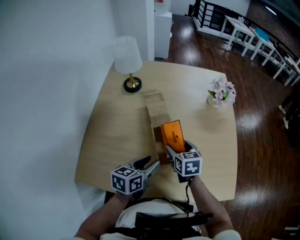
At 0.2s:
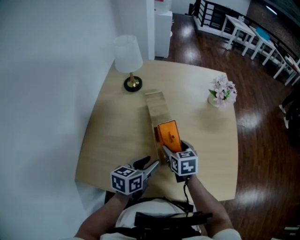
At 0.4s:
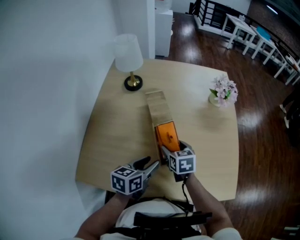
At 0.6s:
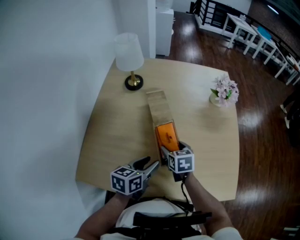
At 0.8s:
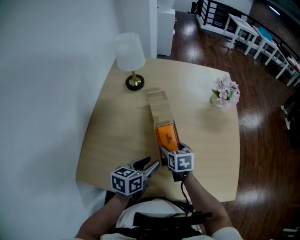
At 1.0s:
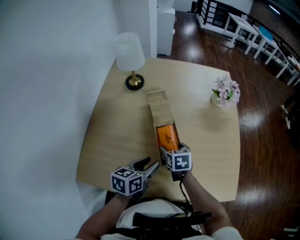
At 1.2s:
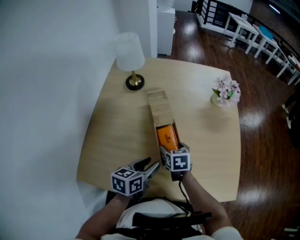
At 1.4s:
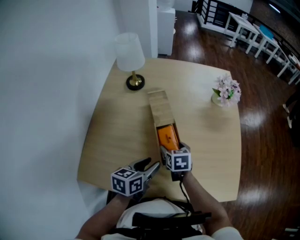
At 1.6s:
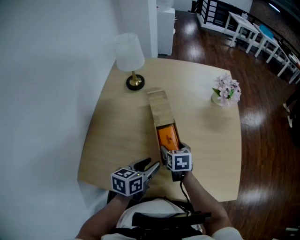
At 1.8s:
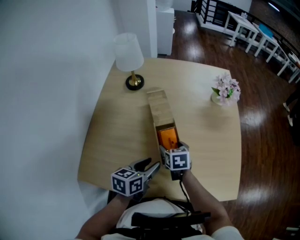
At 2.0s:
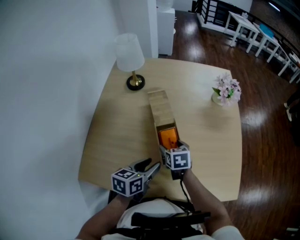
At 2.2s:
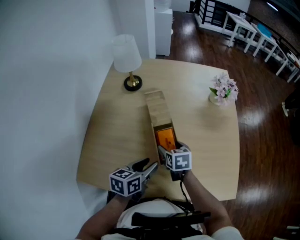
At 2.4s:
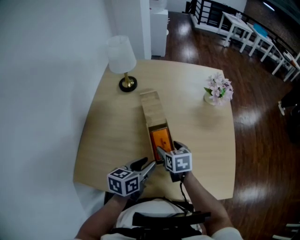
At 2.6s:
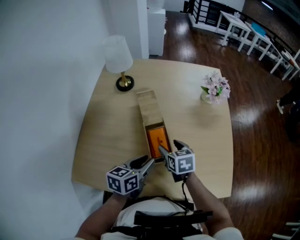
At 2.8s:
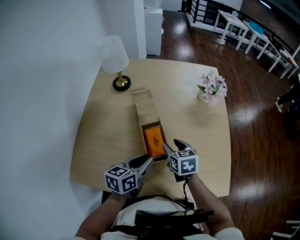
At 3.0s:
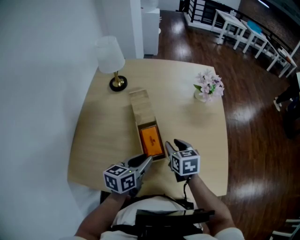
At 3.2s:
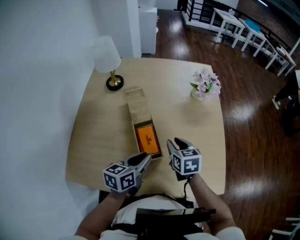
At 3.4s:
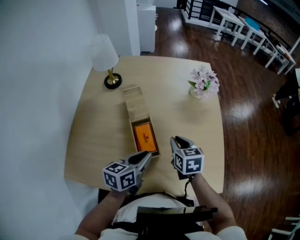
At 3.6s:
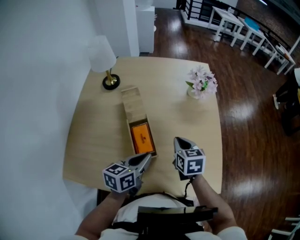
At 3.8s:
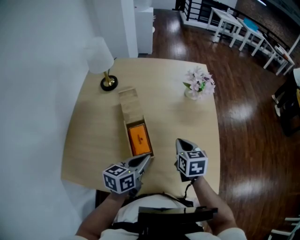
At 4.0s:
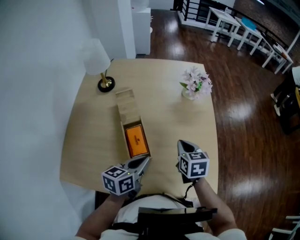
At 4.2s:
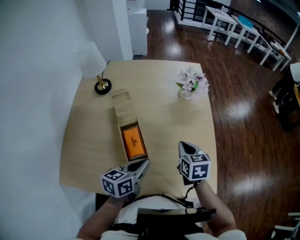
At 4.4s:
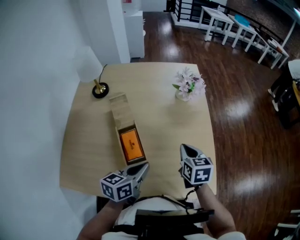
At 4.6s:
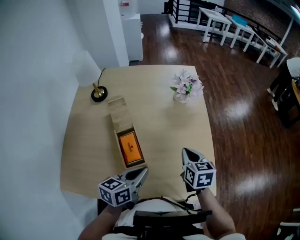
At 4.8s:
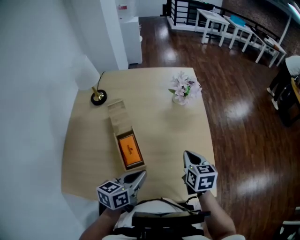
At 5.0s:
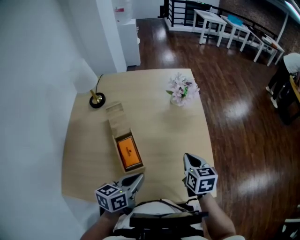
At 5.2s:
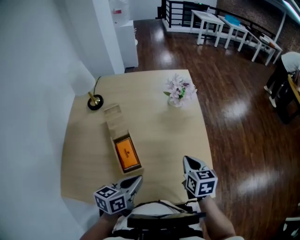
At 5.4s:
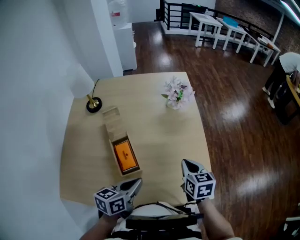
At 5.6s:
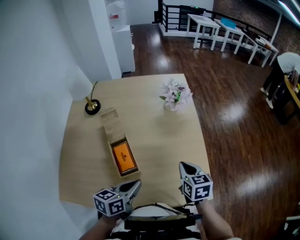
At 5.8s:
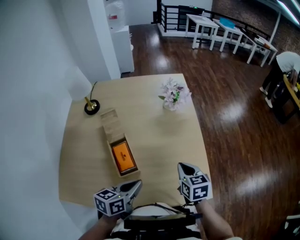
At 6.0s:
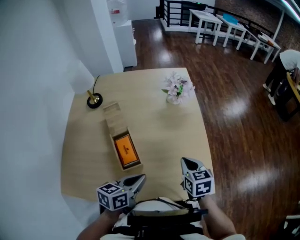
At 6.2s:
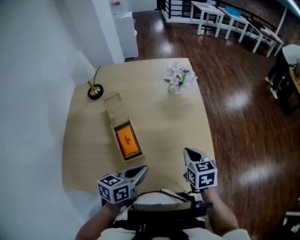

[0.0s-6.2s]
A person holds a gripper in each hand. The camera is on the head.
0.0s to 1.6s: The right gripper heads downward, covering approximately 5 cm.
1.6s to 3.2s: The right gripper goes approximately 15 cm to the right and upward, and closes its fingers; the left gripper heads to the right, covering roughly 5 cm, and closes its fingers.
3.2s to 4.6s: The left gripper goes some 10 cm to the right. Meanwhile the right gripper heads to the right, covering roughly 15 cm.
4.6s to 6.2s: The right gripper ends up about 5 cm from where it was.

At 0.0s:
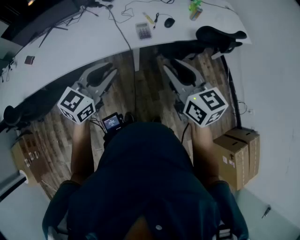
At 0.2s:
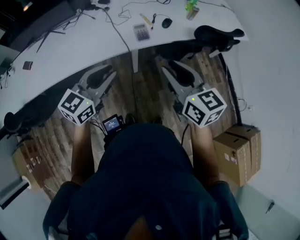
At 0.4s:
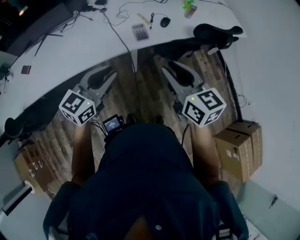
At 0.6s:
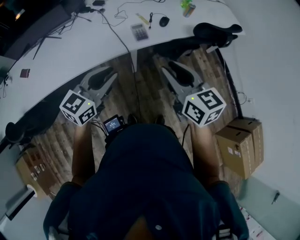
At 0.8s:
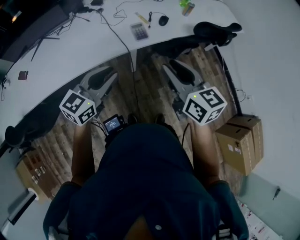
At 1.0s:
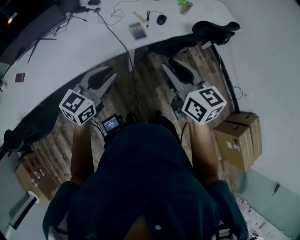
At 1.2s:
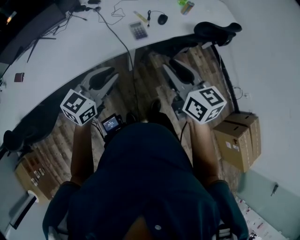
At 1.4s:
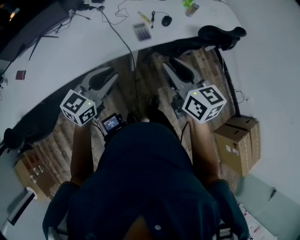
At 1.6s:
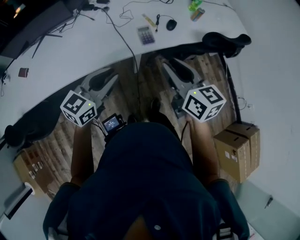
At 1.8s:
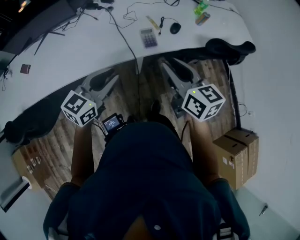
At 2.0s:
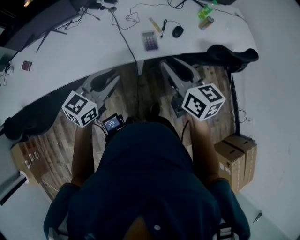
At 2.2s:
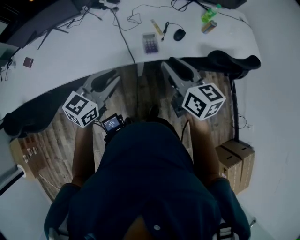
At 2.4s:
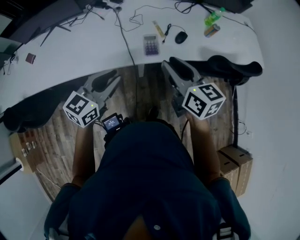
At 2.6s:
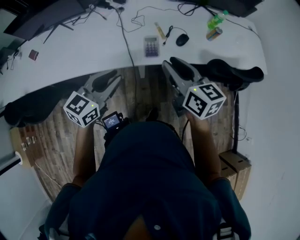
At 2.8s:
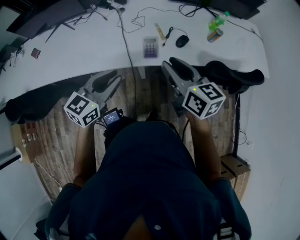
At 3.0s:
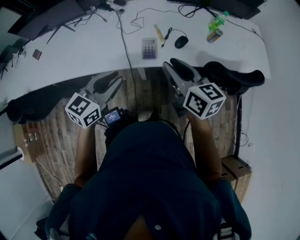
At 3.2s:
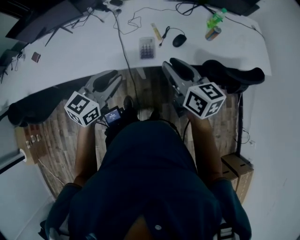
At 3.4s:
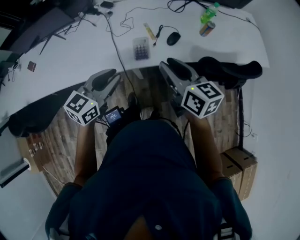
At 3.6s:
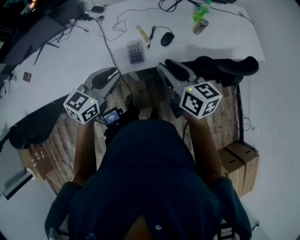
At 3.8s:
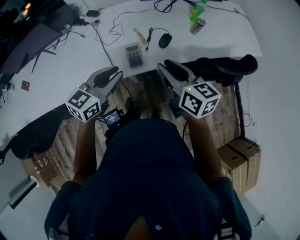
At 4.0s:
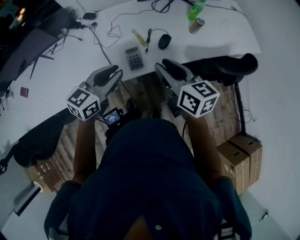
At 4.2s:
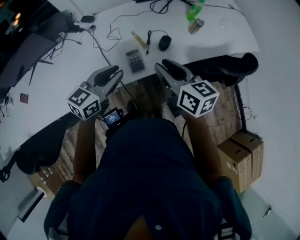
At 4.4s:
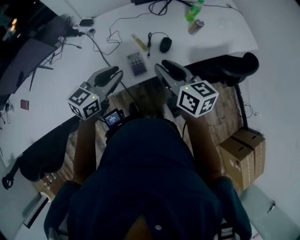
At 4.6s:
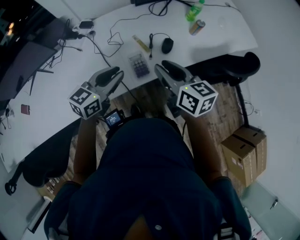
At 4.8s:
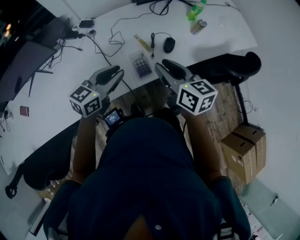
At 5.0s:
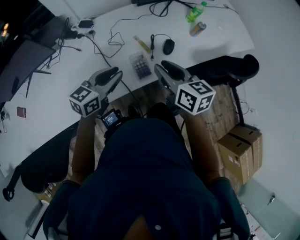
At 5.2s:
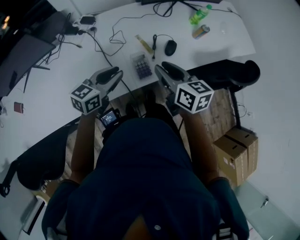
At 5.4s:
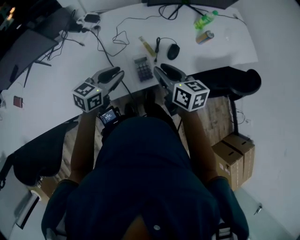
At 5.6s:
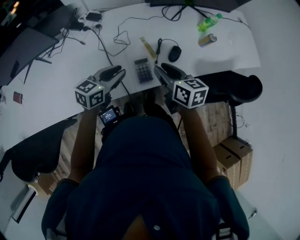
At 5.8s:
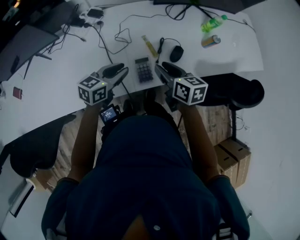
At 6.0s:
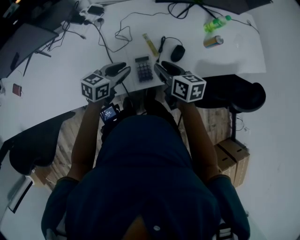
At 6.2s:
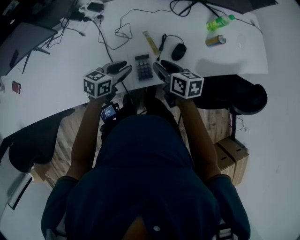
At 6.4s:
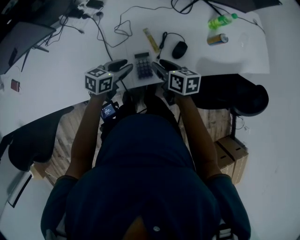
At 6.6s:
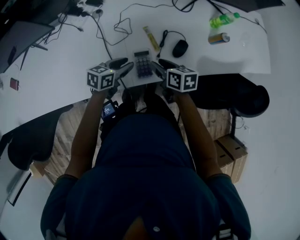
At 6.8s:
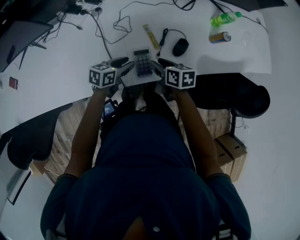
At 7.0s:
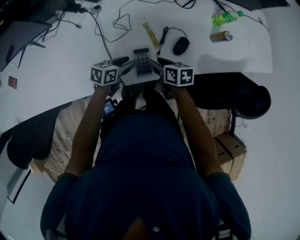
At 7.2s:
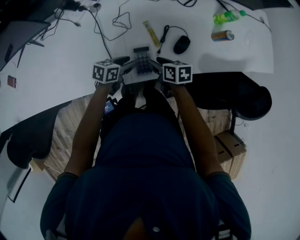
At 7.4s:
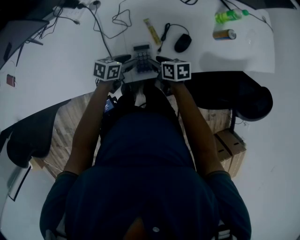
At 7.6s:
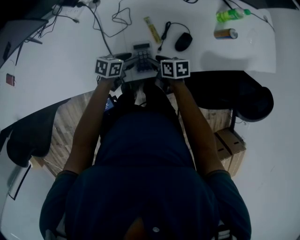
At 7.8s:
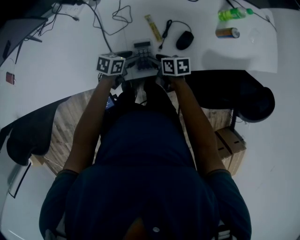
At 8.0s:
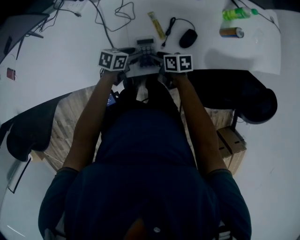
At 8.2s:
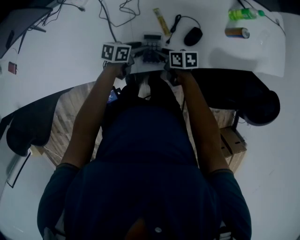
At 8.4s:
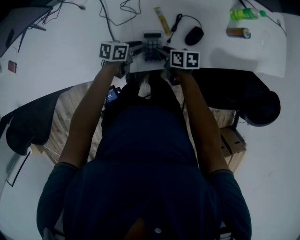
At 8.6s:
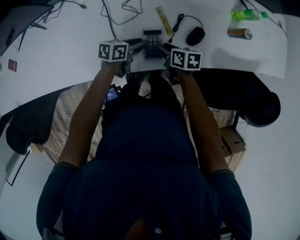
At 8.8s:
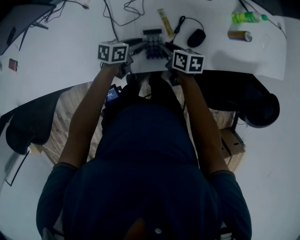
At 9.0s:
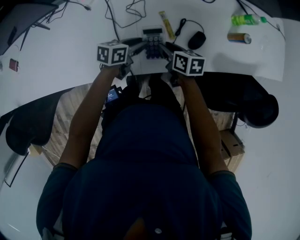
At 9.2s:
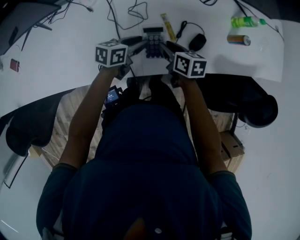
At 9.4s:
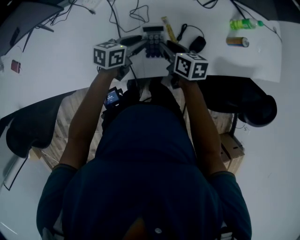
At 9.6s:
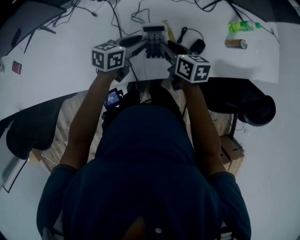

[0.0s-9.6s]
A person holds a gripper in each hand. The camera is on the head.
0.0s to 1.6s: The right gripper shifts approximately 10 cm forward and to the left; the left gripper travels to the left and forward by about 10 cm.
1.6s to 3.2s: The right gripper heads forward and to the right, covering approximately 20 cm; the left gripper goes about 15 cm to the right and forward.
3.2s to 4.8s: The left gripper shifts approximately 15 cm forward, and changes its angle by roughly 20 degrees, while the right gripper goes roughly 10 cm forward and to the left.
4.8s to 6.4s: The grippers both shift downward and forward by approximately 20 cm. The left gripper turns by some 20 degrees, while the right gripper rotates some 30 degrees.
6.4s to 8.0s: The two grippers go approximately 15 cm downward.
8.0s to 9.6s: The grippers both shift upward by about 15 cm. The left gripper swivels approximately 20 degrees. Meanwhile the right gripper rotates approximately 20 degrees.

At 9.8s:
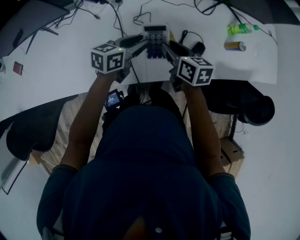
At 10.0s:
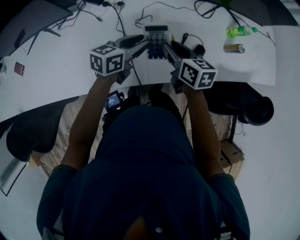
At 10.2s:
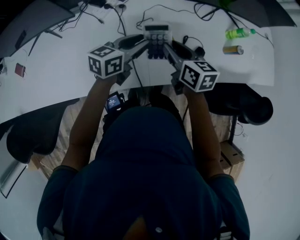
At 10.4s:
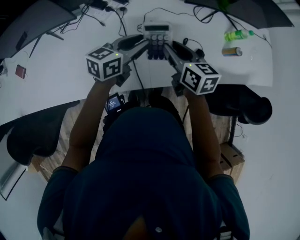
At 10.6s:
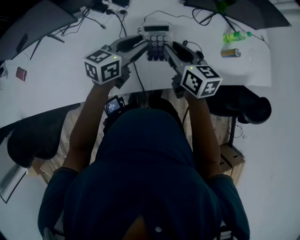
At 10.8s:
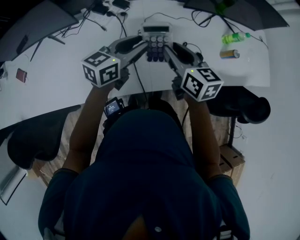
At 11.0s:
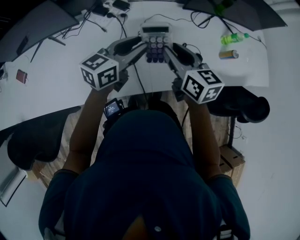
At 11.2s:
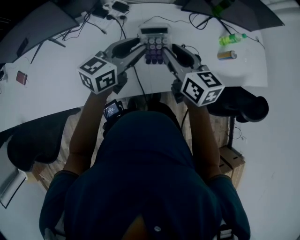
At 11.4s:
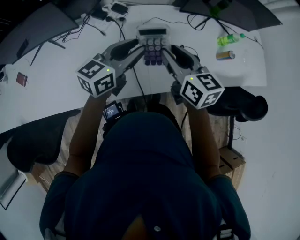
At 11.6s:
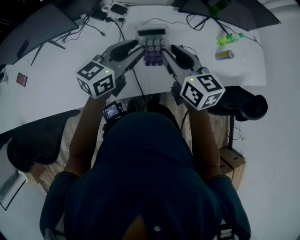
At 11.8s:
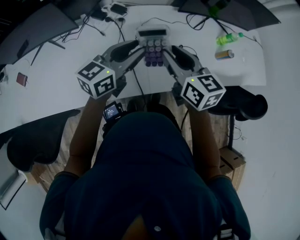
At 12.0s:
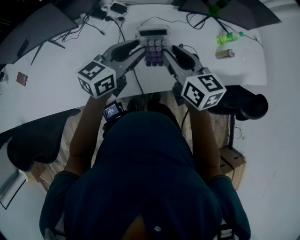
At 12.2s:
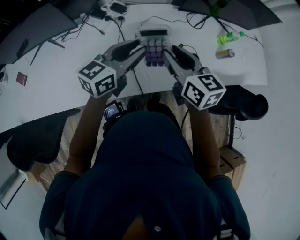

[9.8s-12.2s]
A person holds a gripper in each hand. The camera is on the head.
9.8s to 11.0s: The two grippers go some 15 cm upward.
11.0s to 12.2s: The grippers move only a little.

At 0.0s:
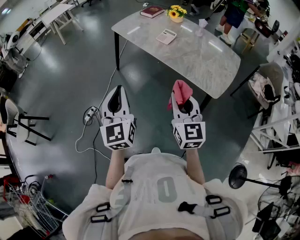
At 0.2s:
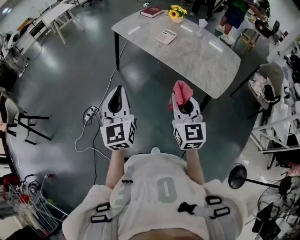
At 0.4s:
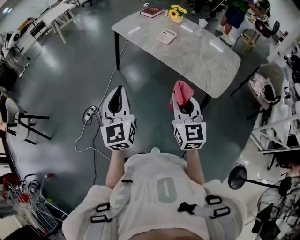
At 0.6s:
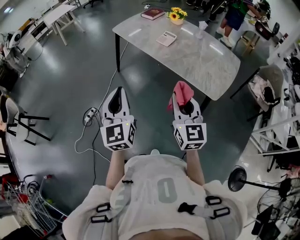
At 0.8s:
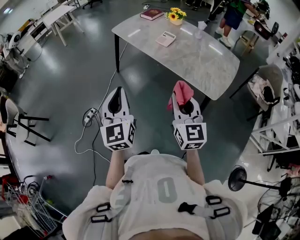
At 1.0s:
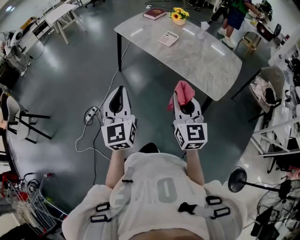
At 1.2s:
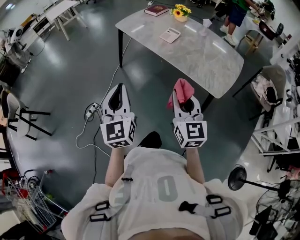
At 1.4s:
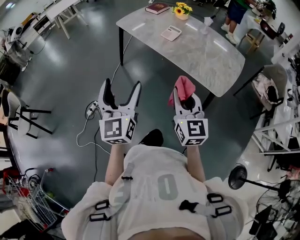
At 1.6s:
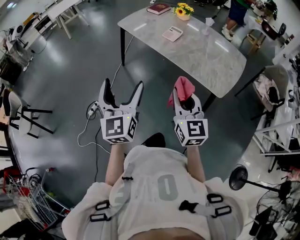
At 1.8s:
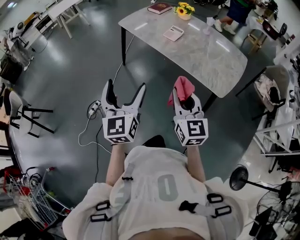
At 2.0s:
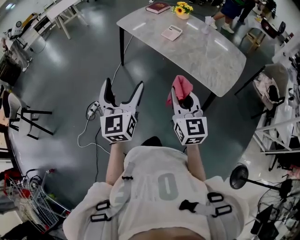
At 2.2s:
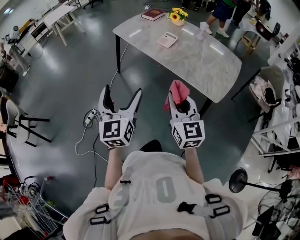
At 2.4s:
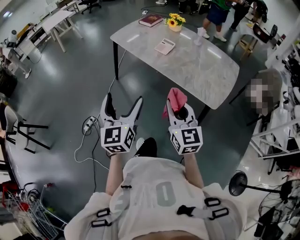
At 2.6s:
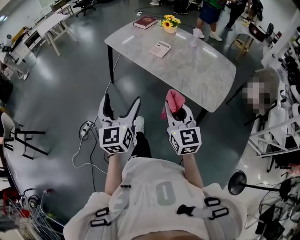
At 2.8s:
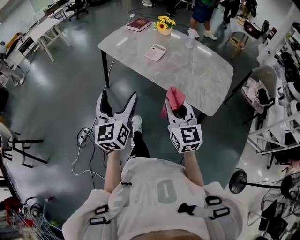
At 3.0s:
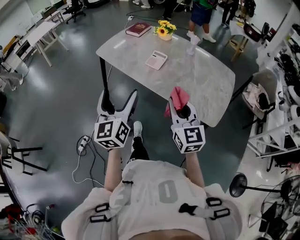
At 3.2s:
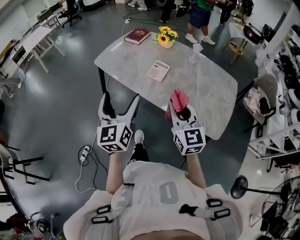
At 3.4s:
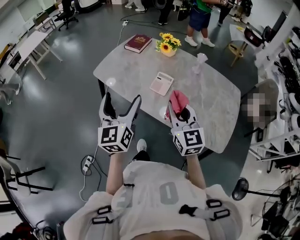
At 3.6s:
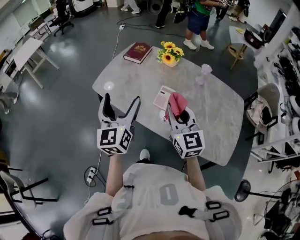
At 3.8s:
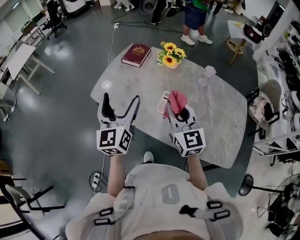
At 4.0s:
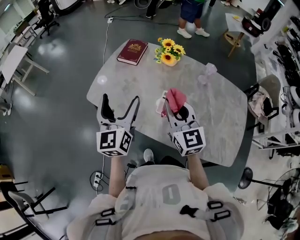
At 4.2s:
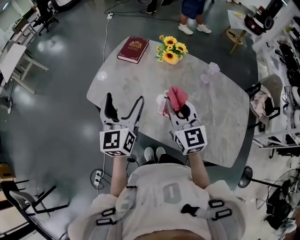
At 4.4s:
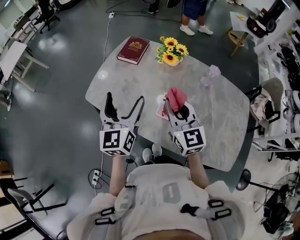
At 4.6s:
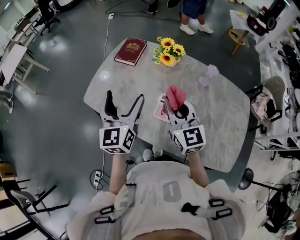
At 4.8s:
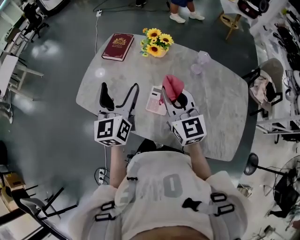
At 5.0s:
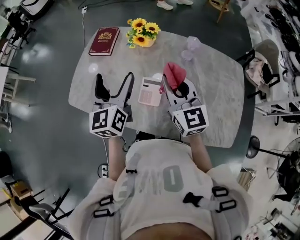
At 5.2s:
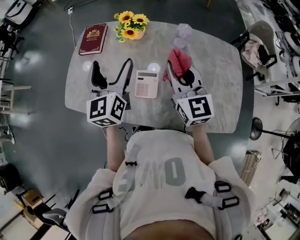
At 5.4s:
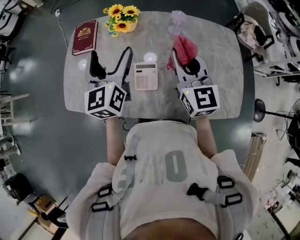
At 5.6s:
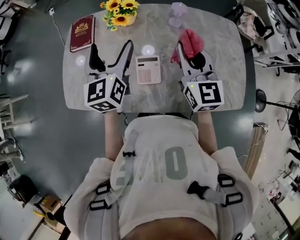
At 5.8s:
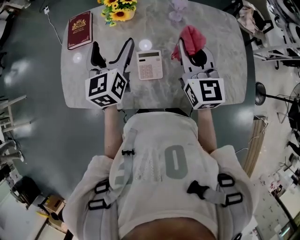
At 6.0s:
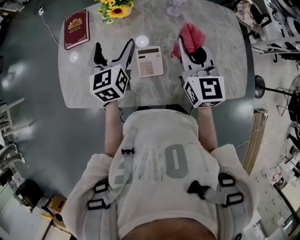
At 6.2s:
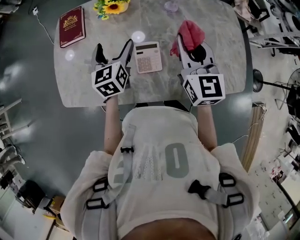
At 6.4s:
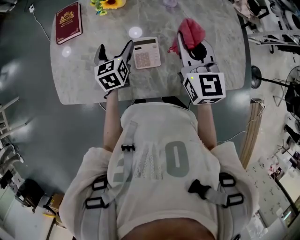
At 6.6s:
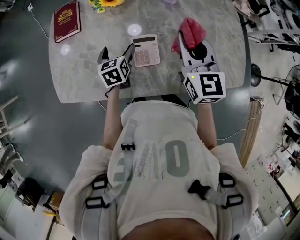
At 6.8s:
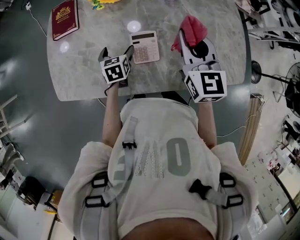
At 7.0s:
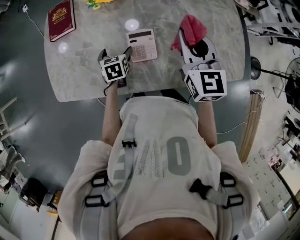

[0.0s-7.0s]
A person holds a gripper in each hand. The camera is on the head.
0.0s to 1.4s: The left gripper opens.
1.4s to 2.8s: The two grippers go approximately 15 cm forward.
2.8s to 4.2s: The two grippers travel together, forward, about 60 cm.
4.2s to 5.6s: The right gripper shifts by approximately 20 cm, and rotates roughly 30 degrees, while the left gripper changes place by approximately 20 cm, and turns by roughly 20 degrees.
5.6s to 7.0s: The right gripper moves downward, some 5 cm. Meanwhile the left gripper is displaced downward by approximately 30 cm, and angles its fingers downward, by some 40 degrees.
